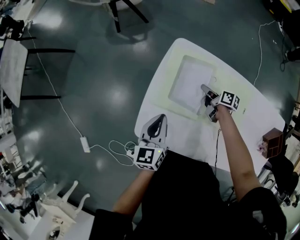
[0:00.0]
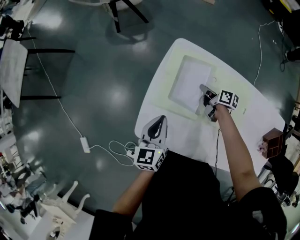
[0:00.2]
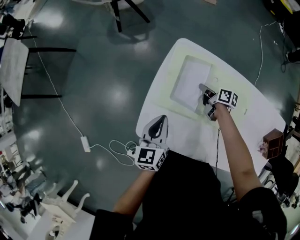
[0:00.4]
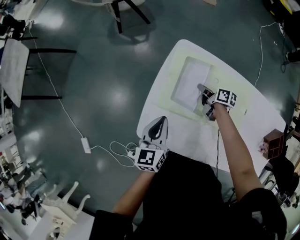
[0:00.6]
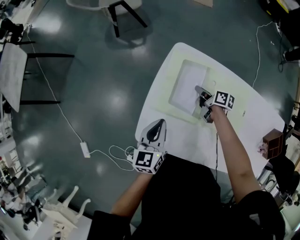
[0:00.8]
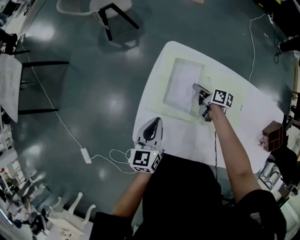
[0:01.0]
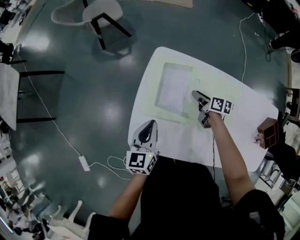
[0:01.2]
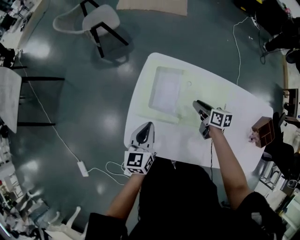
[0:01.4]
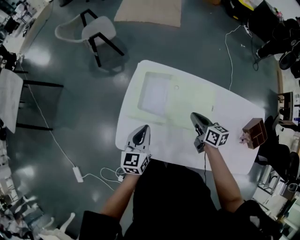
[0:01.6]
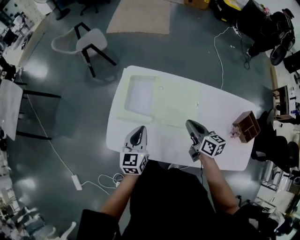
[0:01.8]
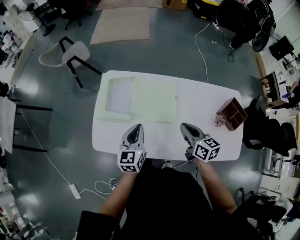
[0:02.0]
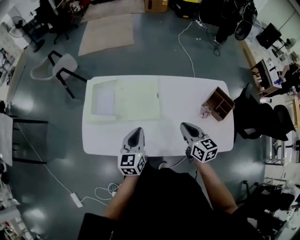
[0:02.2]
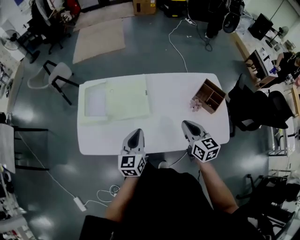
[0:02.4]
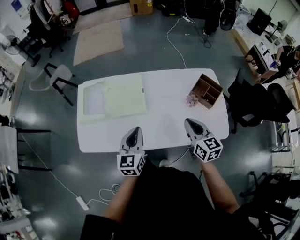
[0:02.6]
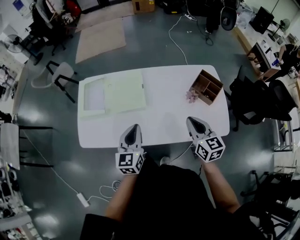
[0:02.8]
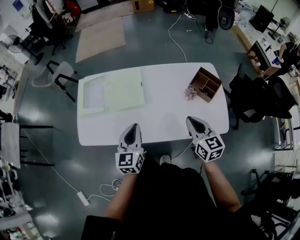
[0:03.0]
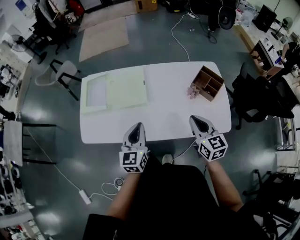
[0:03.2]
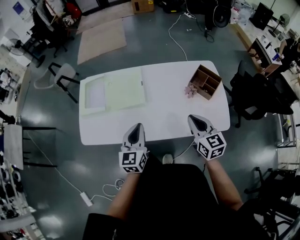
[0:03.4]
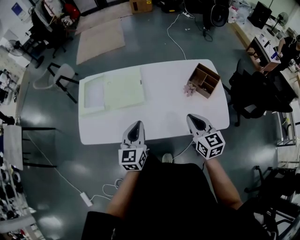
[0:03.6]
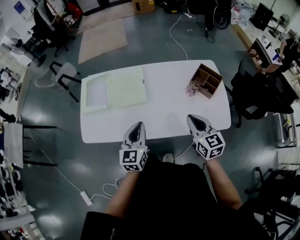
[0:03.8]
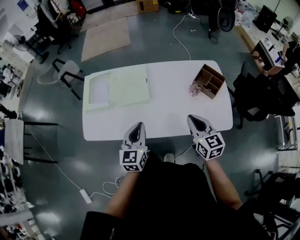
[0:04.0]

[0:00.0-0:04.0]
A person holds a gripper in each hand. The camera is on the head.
0:00.0 to 0:01.4: The right gripper moves upward and backward, some 10 cm, and changes its angle by approximately 20 degrees.
0:01.4 to 0:02.6: The two grippers travel together, to the right and backward, roughly 50 cm. The right gripper moves upward, some 20 cm, changes its angle by some 40 degrees, and closes up; the left gripper swivels about 20 degrees.
0:02.6 to 0:04.0: The grippers both shift backward by roughly 5 cm.

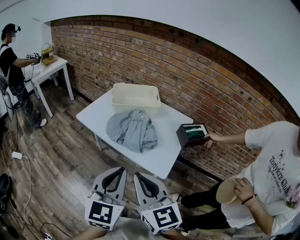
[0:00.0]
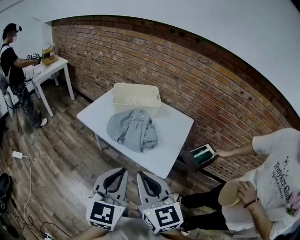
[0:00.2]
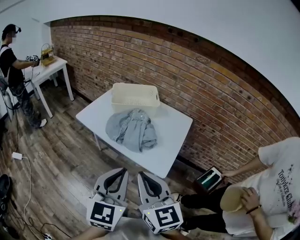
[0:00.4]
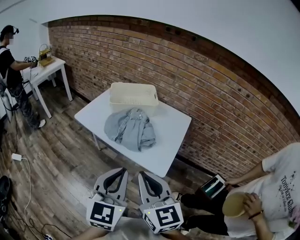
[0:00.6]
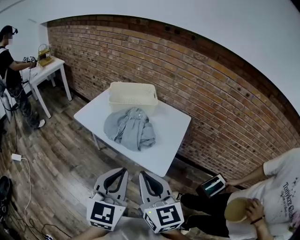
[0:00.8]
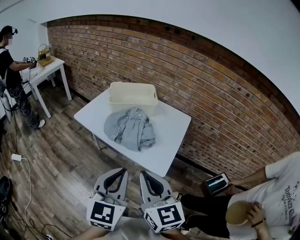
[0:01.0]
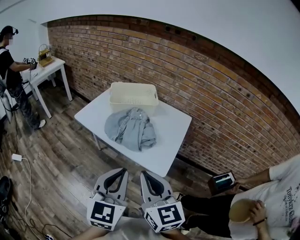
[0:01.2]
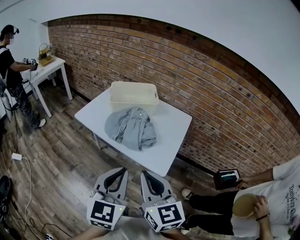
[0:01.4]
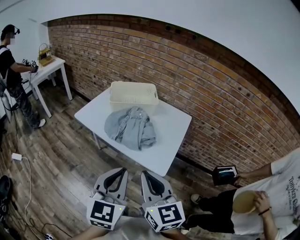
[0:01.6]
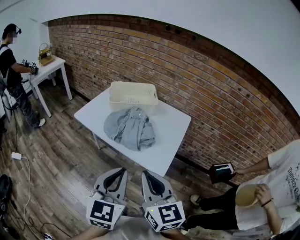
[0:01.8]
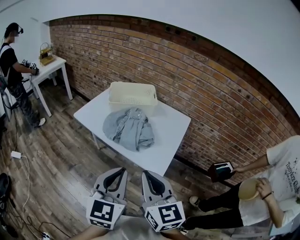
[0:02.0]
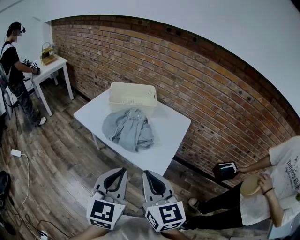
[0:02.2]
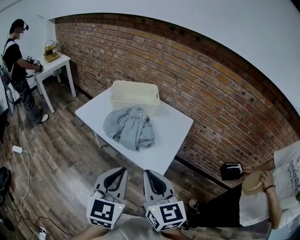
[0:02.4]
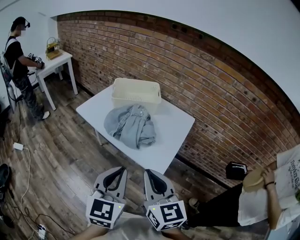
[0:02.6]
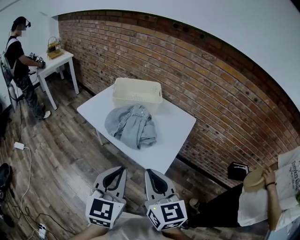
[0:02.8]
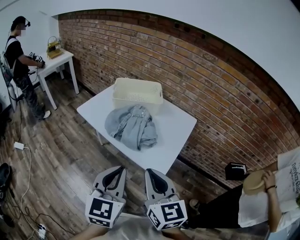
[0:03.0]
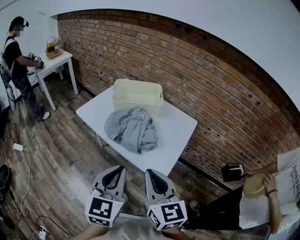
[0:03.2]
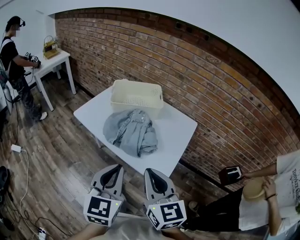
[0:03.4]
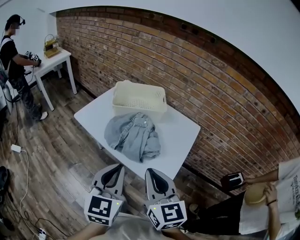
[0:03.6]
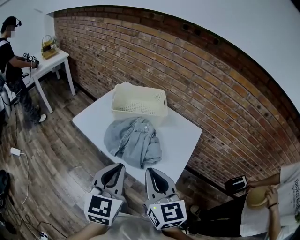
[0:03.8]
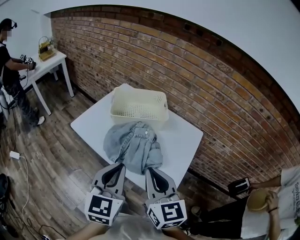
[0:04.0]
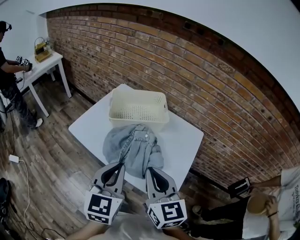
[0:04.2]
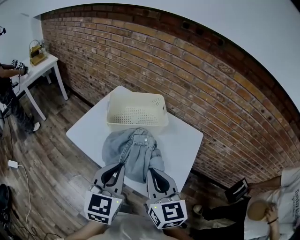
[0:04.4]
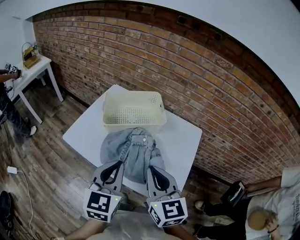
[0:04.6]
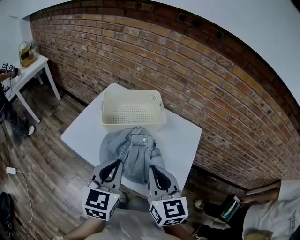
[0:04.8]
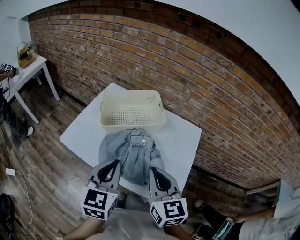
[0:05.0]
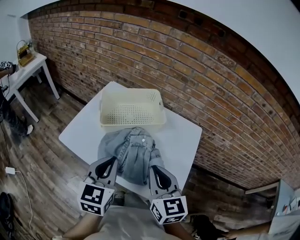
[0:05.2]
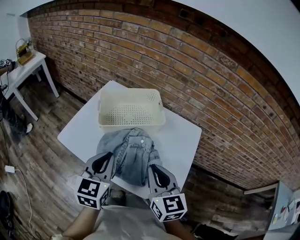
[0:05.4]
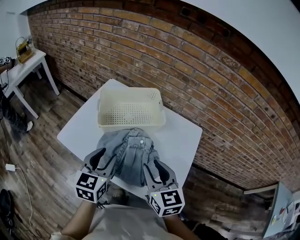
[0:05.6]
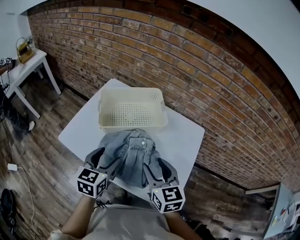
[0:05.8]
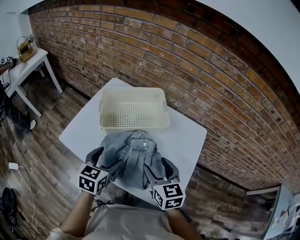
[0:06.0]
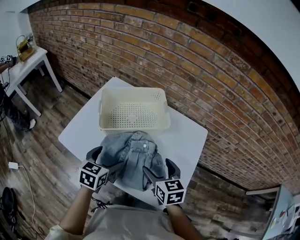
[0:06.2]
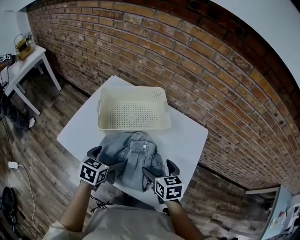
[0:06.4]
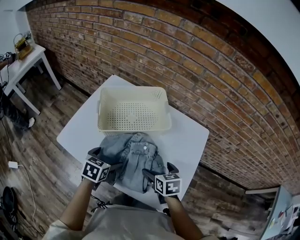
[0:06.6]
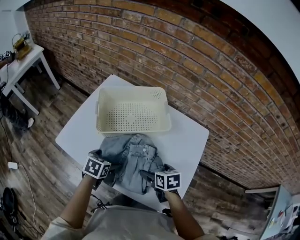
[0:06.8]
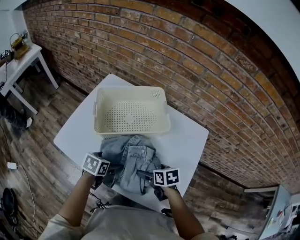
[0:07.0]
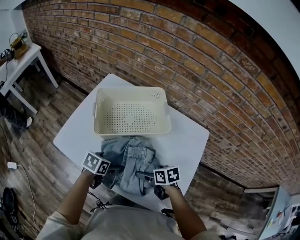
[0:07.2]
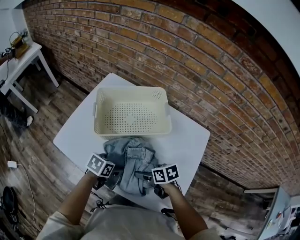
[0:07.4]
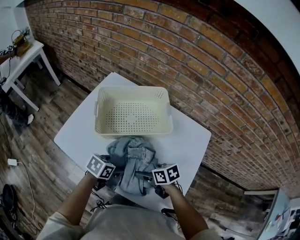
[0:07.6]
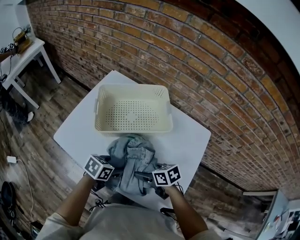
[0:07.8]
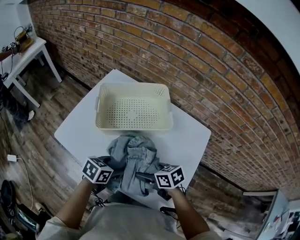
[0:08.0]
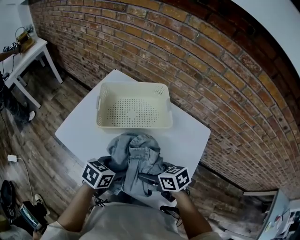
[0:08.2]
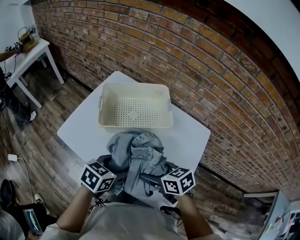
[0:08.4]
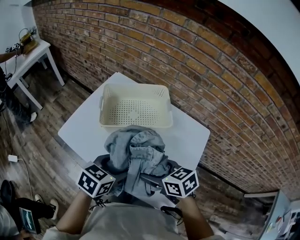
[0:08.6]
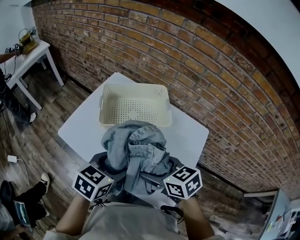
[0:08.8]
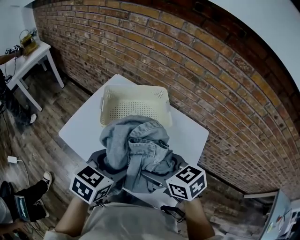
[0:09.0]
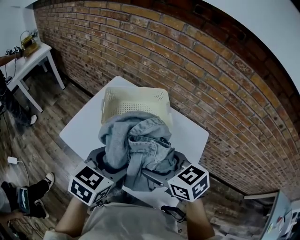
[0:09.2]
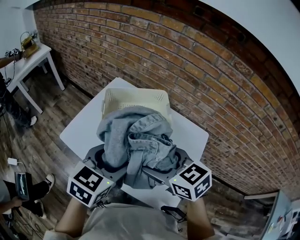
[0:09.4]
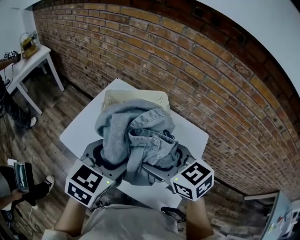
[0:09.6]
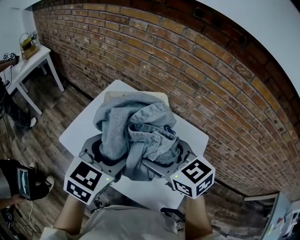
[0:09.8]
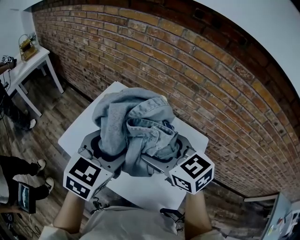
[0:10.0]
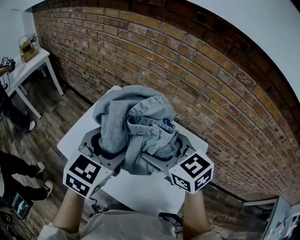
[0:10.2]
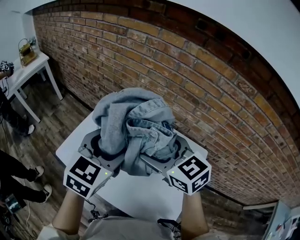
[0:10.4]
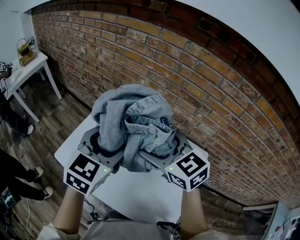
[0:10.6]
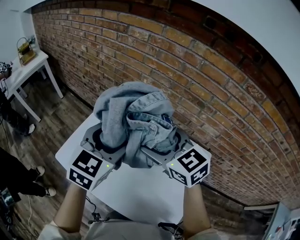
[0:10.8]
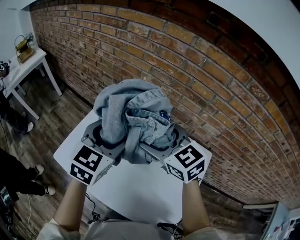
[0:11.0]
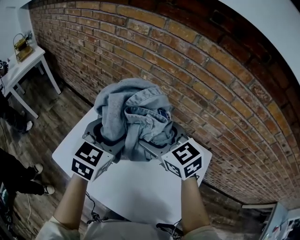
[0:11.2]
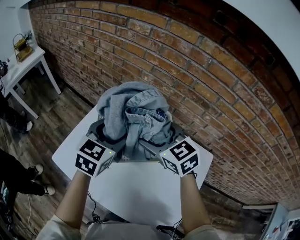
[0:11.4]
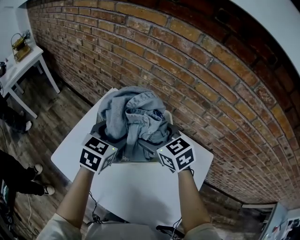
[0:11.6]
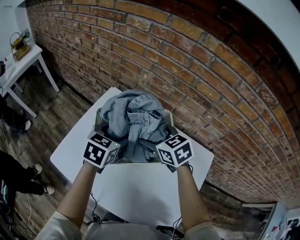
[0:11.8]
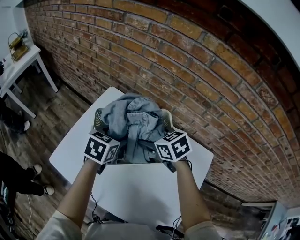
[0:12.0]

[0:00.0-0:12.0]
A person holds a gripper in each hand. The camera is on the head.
0:00.0 to 0:01.6: The grippers make only small movements.
0:01.6 to 0:03.0: The right gripper moves about 5 cm.
0:03.0 to 0:04.4: The two grippers go about 20 cm forward.
0:04.4 to 0:06.0: The two grippers go approximately 15 cm downward and forward. The left gripper rotates roughly 20 degrees, and opens. The right gripper opens up.
0:06.0 to 0:07.6: Both grippers move downward, roughly 15 cm. The left gripper rotates approximately 40 degrees. Meanwhile the right gripper changes its angle by some 50 degrees.
0:07.6 to 0:09.0: Both grippers move upward, about 20 cm. The left gripper changes its angle by approximately 30 degrees. Meanwhile the right gripper turns by approximately 30 degrees.
0:09.0 to 0:10.4: Both grippers move forward and upward, roughly 15 cm. The right gripper changes its angle by approximately 20 degrees. Meanwhile the left gripper turns by roughly 20 degrees.
0:10.4 to 0:12.0: Both grippers move downward and forward, some 25 cm. The right gripper rotates roughly 30 degrees; the left gripper swivels roughly 30 degrees.

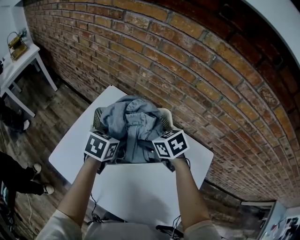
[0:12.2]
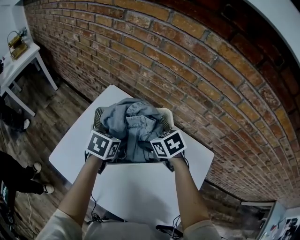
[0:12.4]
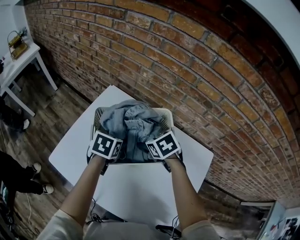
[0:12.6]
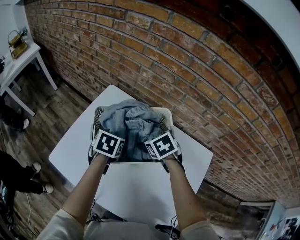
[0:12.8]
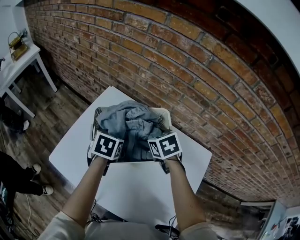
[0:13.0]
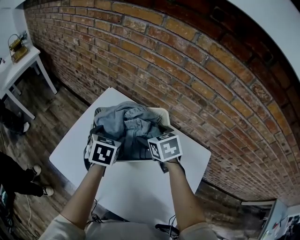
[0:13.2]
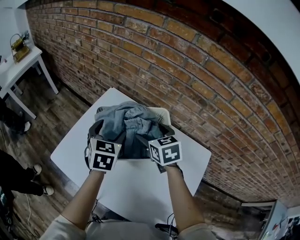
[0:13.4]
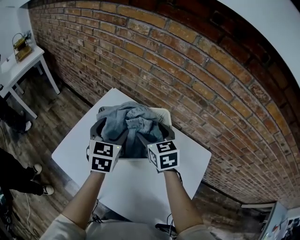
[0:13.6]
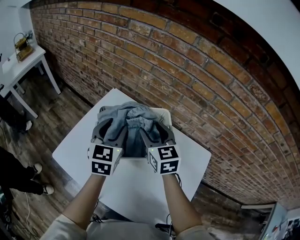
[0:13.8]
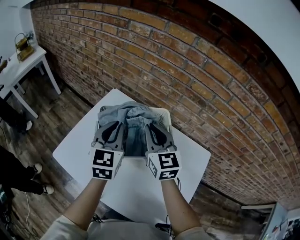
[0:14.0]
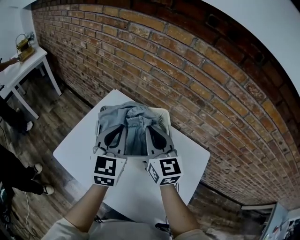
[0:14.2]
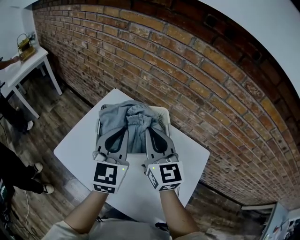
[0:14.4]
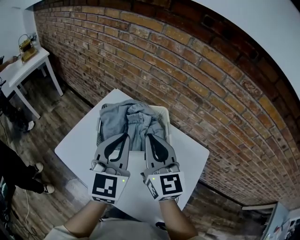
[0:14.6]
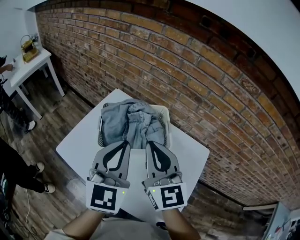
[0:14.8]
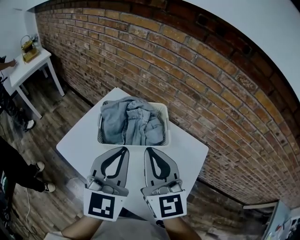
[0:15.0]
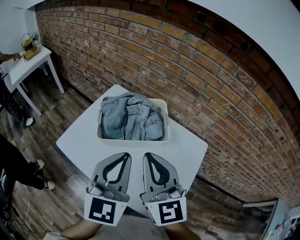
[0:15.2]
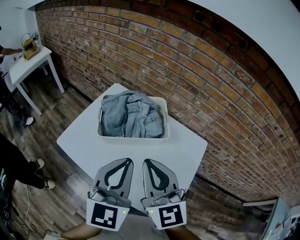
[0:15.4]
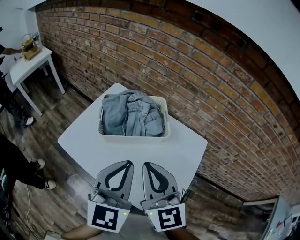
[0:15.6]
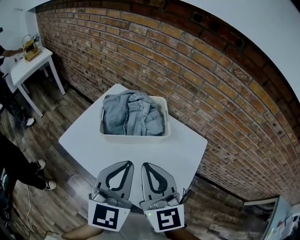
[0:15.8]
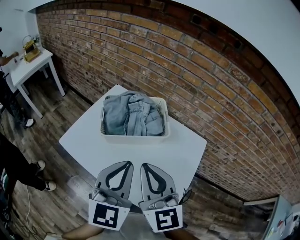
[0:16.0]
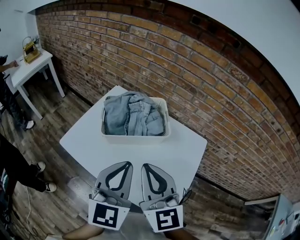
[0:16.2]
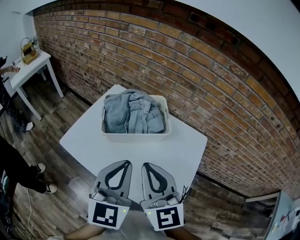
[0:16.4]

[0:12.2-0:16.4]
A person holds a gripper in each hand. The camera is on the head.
0:12.2 to 0:13.6: Both grippers travel together upward, some 5 cm. The right gripper swivels approximately 30 degrees; the left gripper turns by approximately 30 degrees.
0:13.6 to 0:15.0: The two grippers go some 25 cm backward and upward. The right gripper points its fingers some 30 degrees further upward, and closes. The left gripper swivels about 20 degrees, and closes its fingers.
0:15.0 to 0:16.4: Both grippers move backward, about 10 cm.

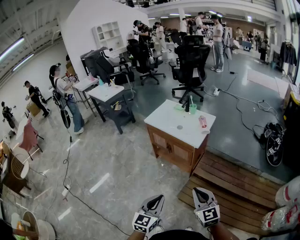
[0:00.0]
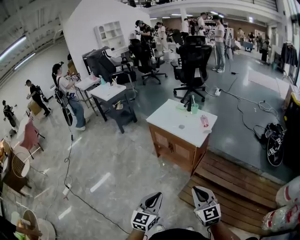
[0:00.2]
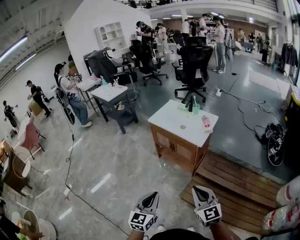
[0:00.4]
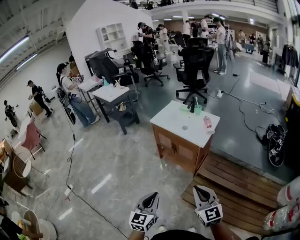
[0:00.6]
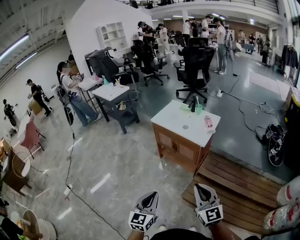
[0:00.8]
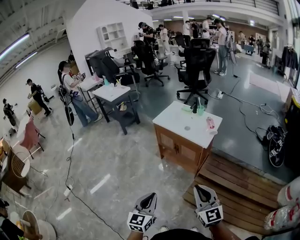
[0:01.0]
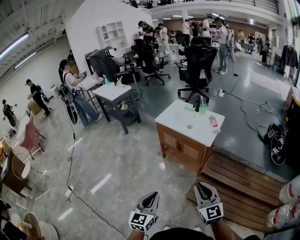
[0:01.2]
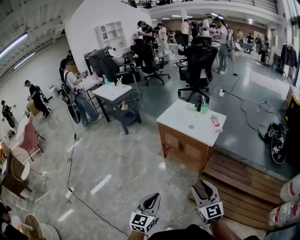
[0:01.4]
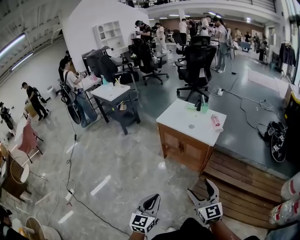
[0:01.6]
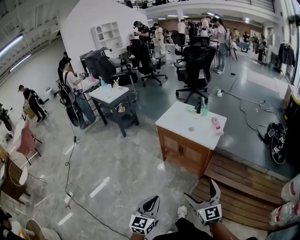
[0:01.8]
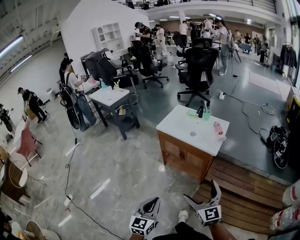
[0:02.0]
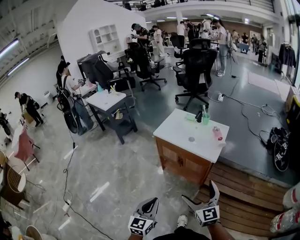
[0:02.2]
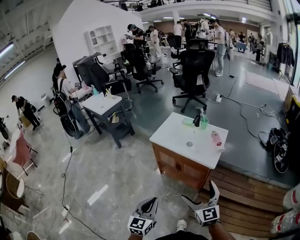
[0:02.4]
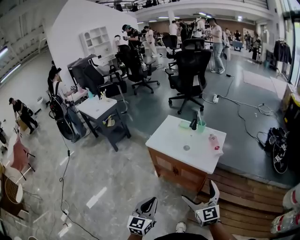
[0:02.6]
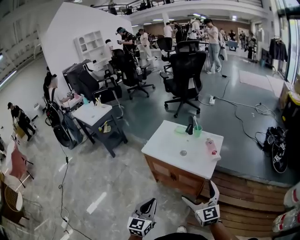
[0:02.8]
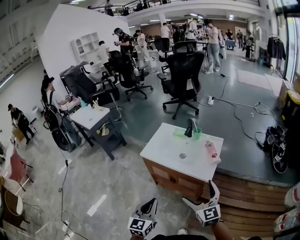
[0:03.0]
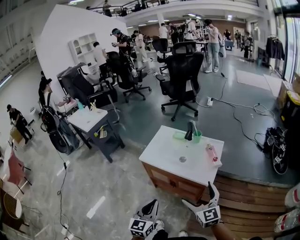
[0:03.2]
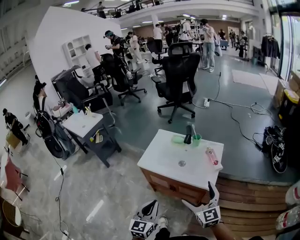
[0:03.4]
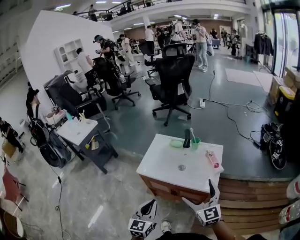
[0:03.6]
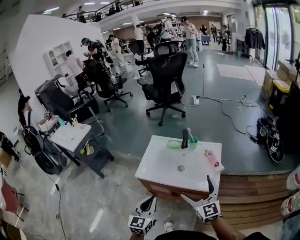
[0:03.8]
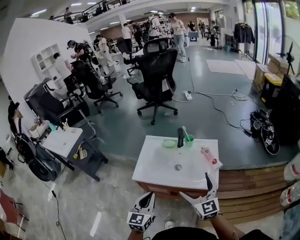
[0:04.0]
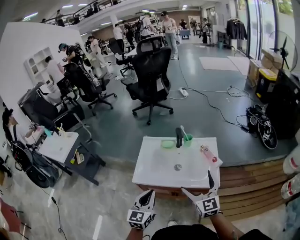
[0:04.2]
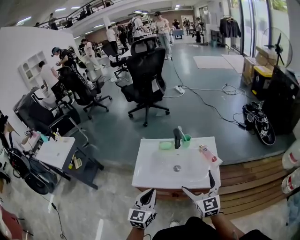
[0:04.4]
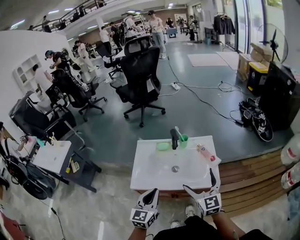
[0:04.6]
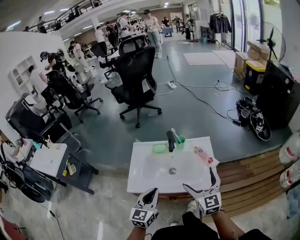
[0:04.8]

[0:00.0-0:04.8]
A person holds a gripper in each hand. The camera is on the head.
0:00.0 to 0:01.6: The two grippers go approximately 15 cm to the left. The right gripper opens up.
0:01.6 to 0:03.2: The two grippers travel together, forward, roughly 40 cm. The right gripper opens.
0:03.2 to 0:04.8: The right gripper shifts by about 25 cm, and swivels approximately 30 degrees. Meanwhile the left gripper moves roughly 30 cm, and changes its angle by some 30 degrees.
